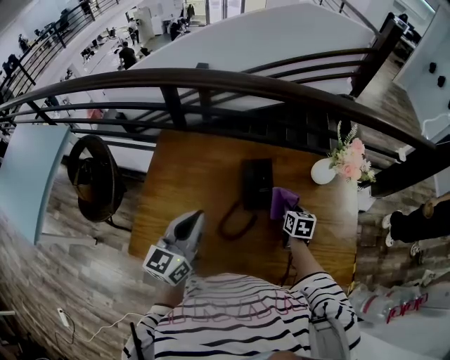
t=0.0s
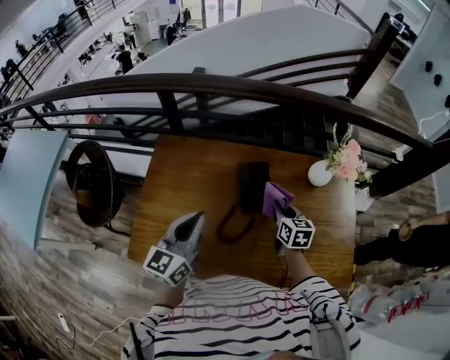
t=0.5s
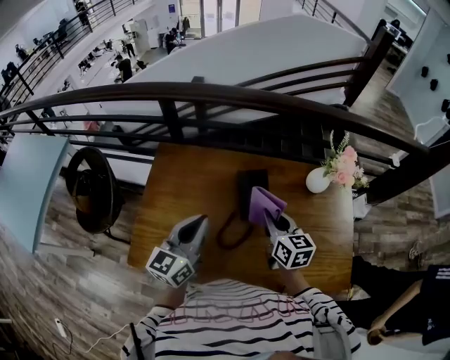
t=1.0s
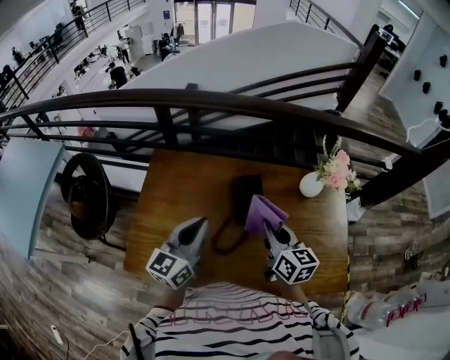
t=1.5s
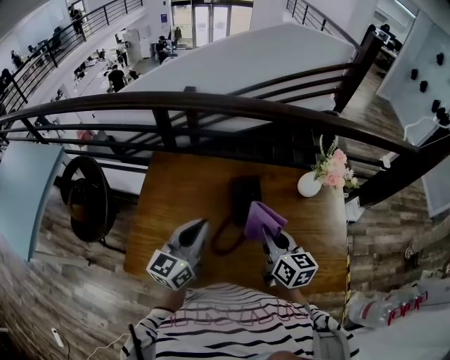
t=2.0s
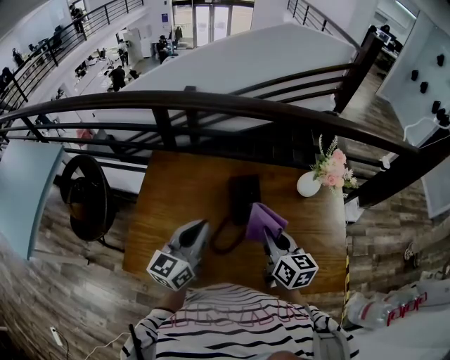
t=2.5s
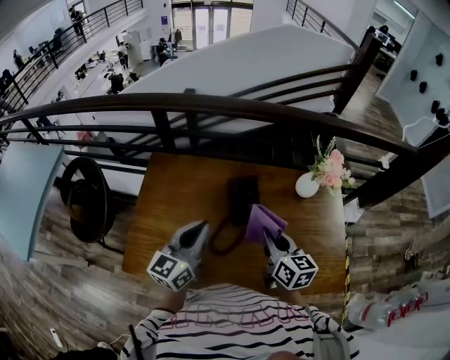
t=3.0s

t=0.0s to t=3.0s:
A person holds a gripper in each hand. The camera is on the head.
t=0.0s to t=1.5s: The right gripper heads upward and to the left, covering approximately 20 cm, and swivels about 30 degrees.
t=1.5s to t=3.0s: The grippers stay close to where they were, moving slightly.

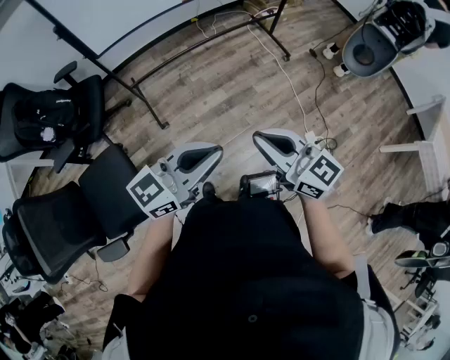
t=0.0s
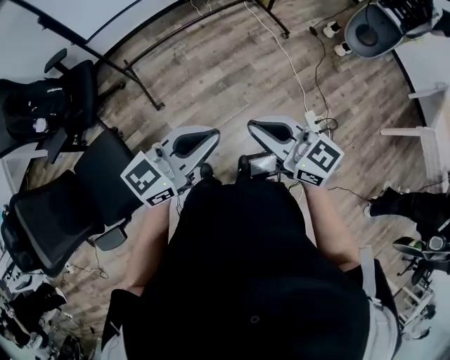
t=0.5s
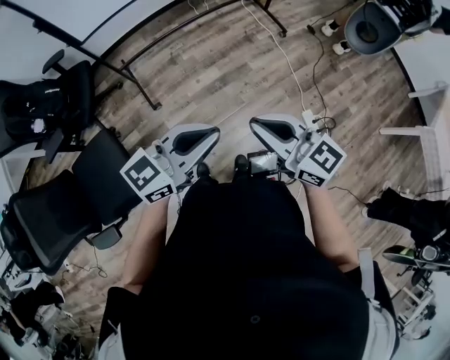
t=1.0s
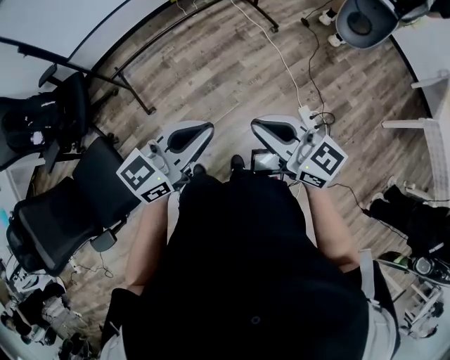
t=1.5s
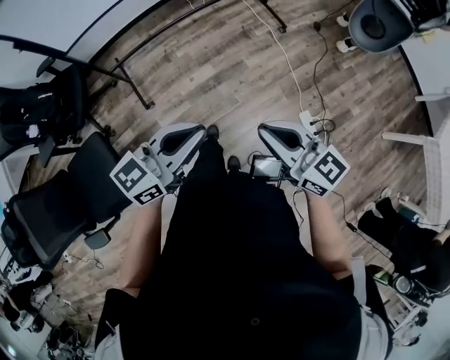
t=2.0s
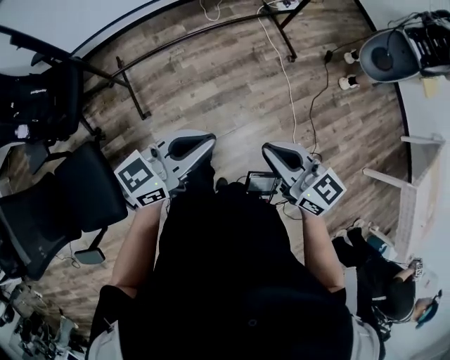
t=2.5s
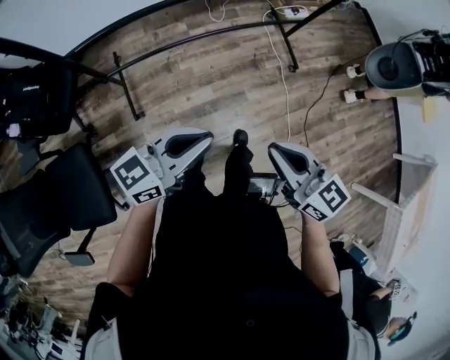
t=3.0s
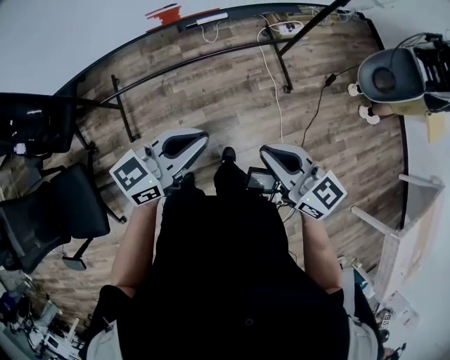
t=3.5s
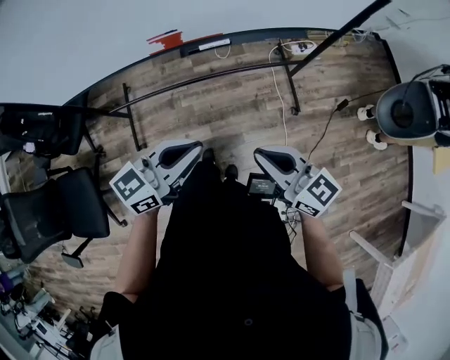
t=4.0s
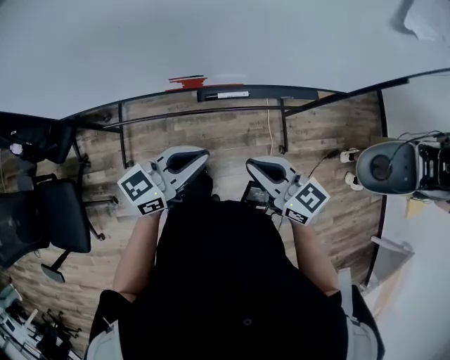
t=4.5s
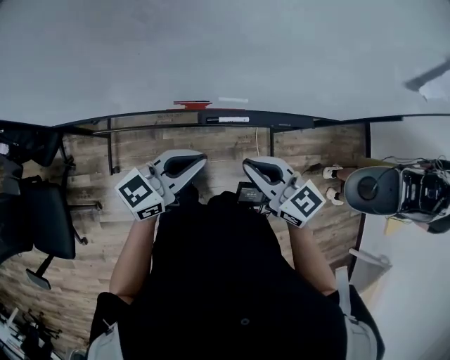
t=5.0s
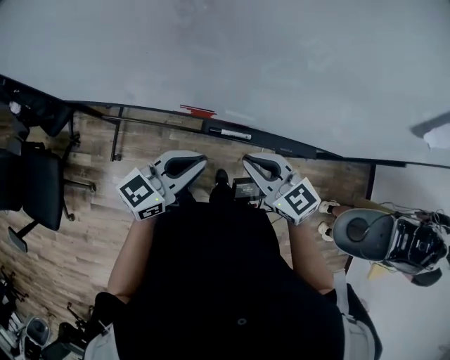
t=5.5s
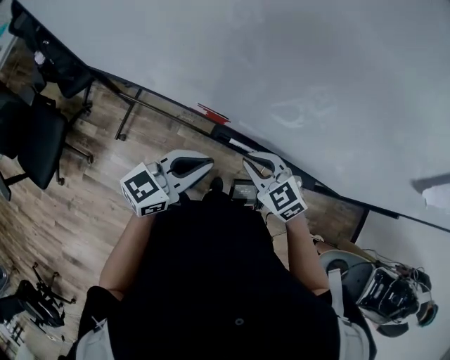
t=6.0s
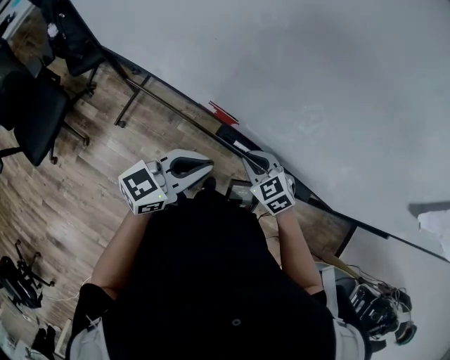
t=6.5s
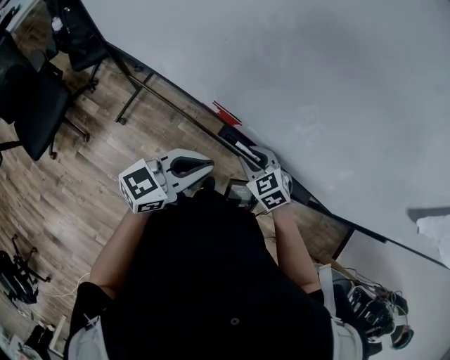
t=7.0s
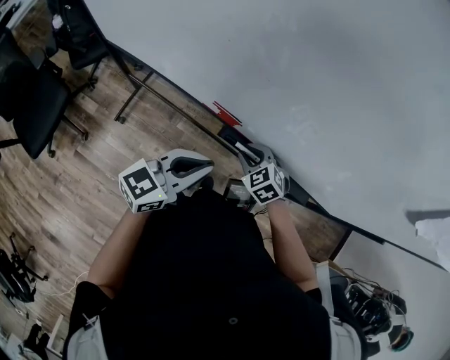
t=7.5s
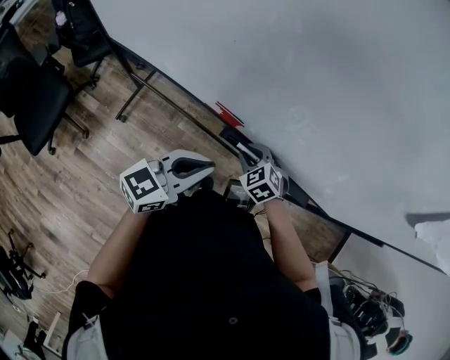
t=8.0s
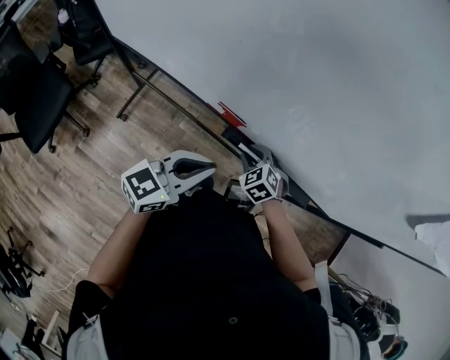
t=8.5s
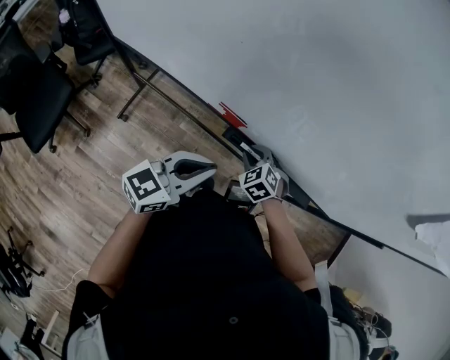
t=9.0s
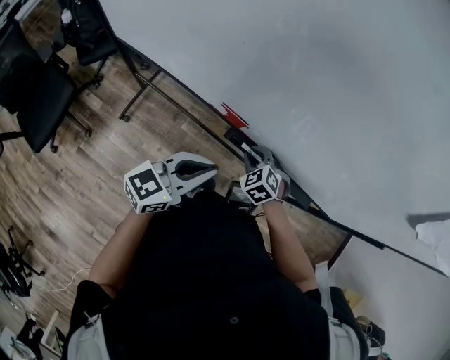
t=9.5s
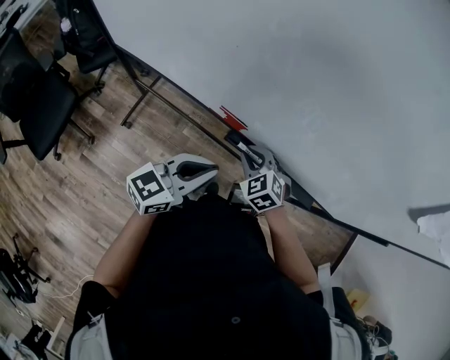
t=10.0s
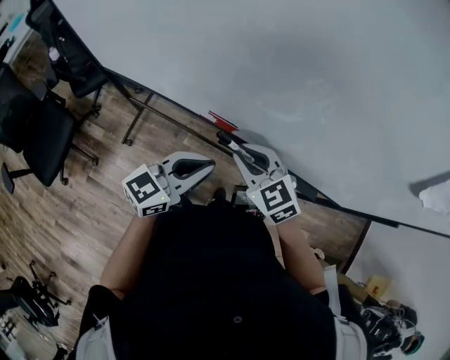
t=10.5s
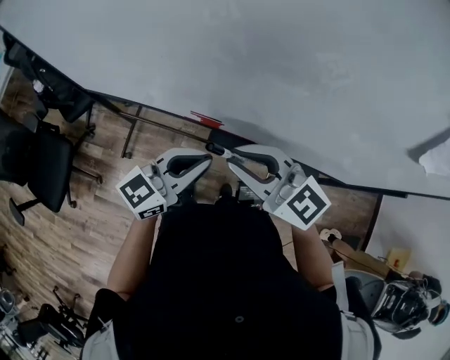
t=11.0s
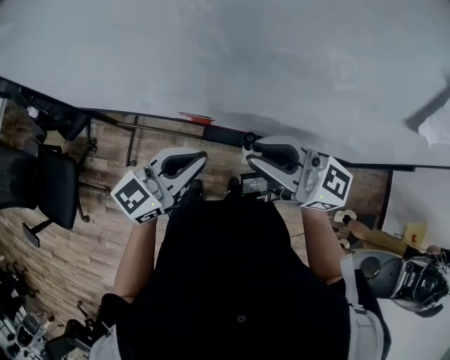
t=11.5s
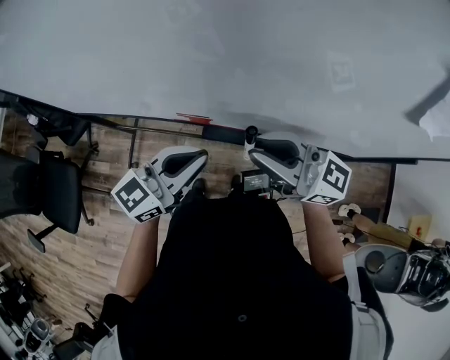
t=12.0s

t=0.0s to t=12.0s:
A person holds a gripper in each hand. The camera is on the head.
t=0.0s to t=2.0s: The left gripper travels to the right, forward and downward by approximately 15 cm. The right gripper shifts some 15 cm to the right and forward.
t=2.0s to t=4.0s: The pair of grippers is taken forward, some 50 cm.
t=4.0s to t=6.0s: The left gripper moves roughly 25 cm, and turns by approximately 30 degrees. Meanwhile the right gripper moves approximately 35 cm, and points its fingers about 30 degrees further downward.
t=6.0s to t=8.0s: The right gripper shifts roughly 10 cm downward, and changes its angle by roughly 20 degrees.
t=8.0s to t=10.0s: There are only small adjustments of the grippers.
t=10.0s to t=12.0s: The right gripper moves upward, approximately 25 cm, and angles its fingers upward, by some 60 degrees. Meanwhile the left gripper is displaced upward by some 10 cm.

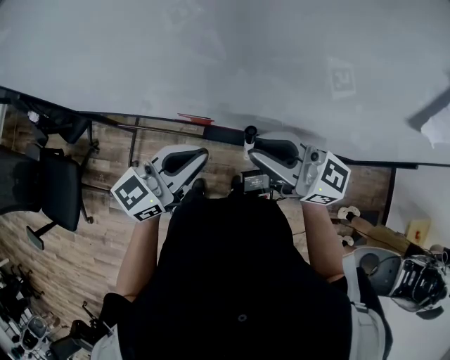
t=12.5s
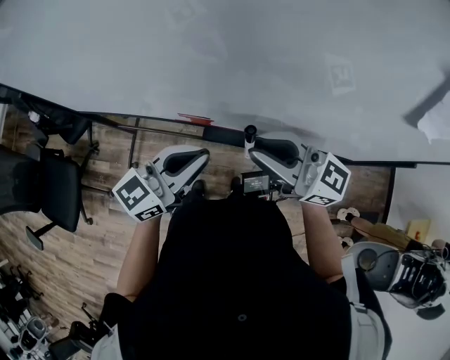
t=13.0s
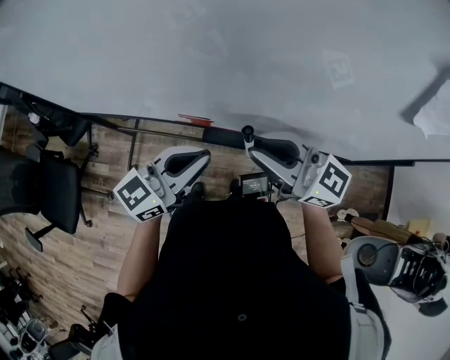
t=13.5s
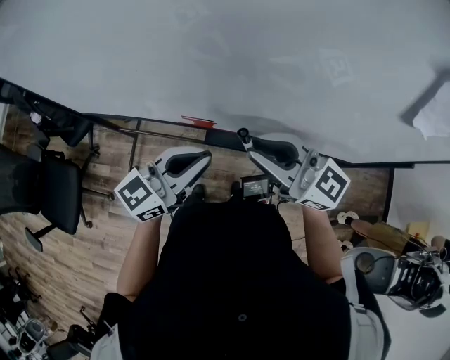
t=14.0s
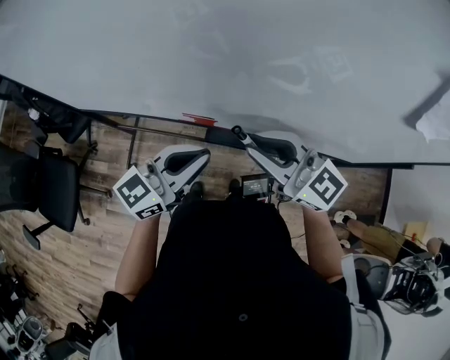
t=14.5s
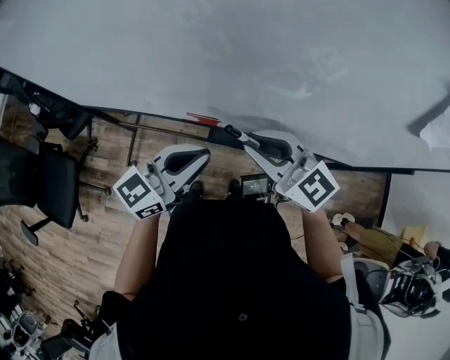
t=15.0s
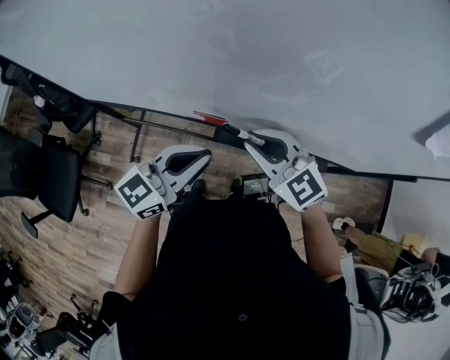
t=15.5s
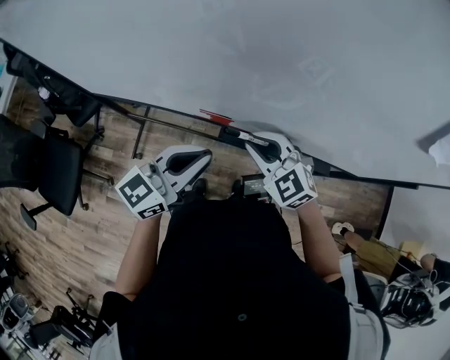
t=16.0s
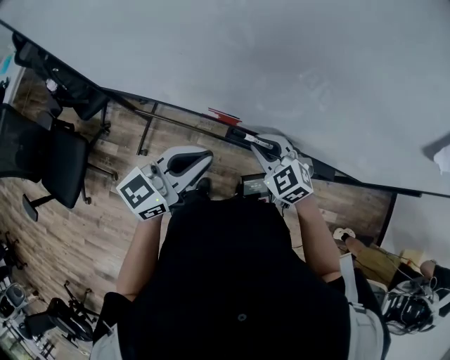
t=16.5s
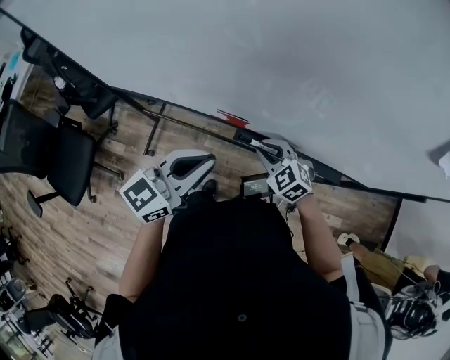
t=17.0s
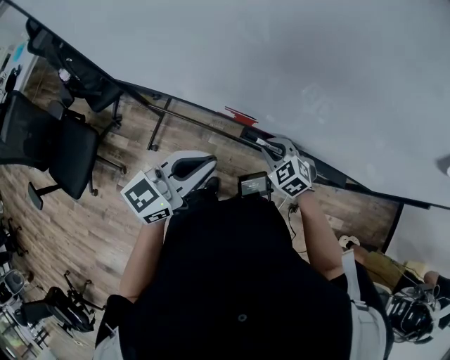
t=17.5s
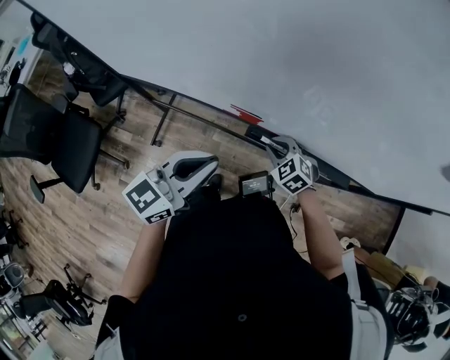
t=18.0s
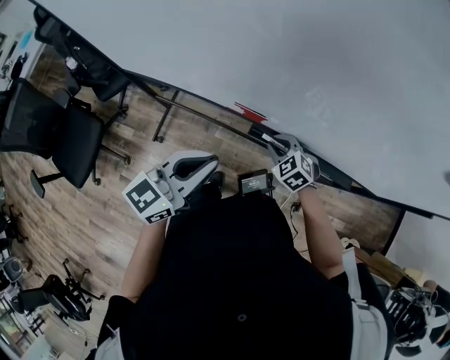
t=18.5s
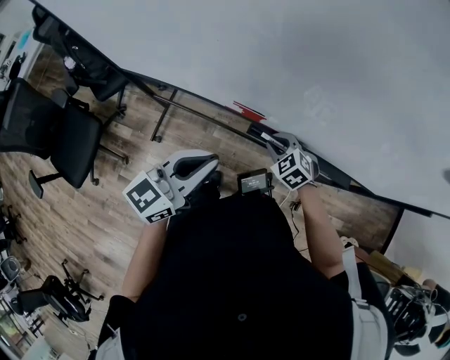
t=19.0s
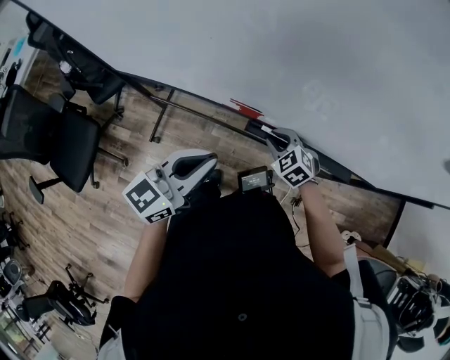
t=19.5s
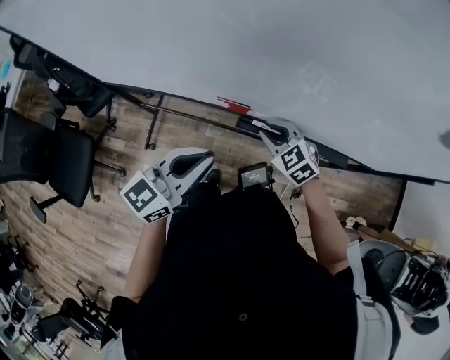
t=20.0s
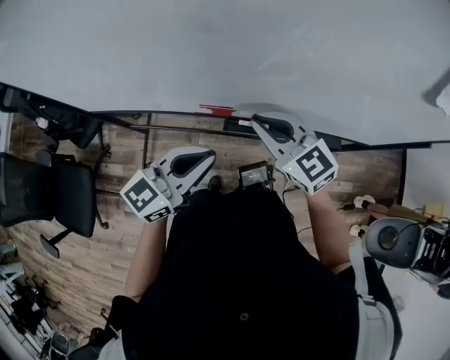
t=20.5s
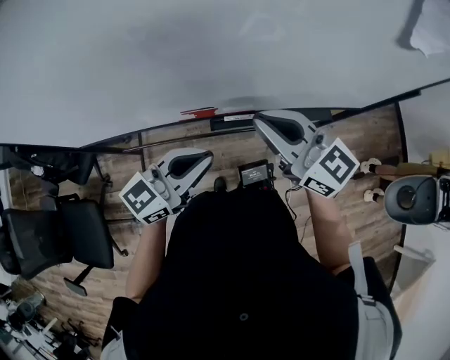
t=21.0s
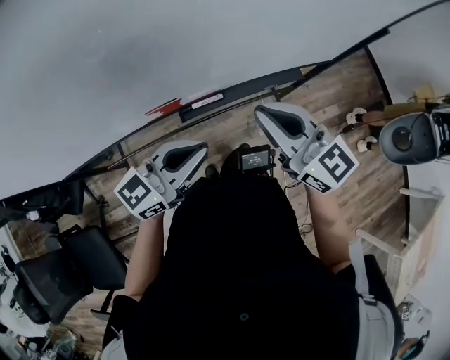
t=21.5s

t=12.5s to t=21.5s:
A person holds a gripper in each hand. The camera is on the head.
t=12.5s to t=14.5s: The right gripper turns by about 20 degrees.
t=14.5s to t=17.0s: The right gripper goes roughly 20 cm downward, and angles its fingers downward, by approximately 40 degrees. Meanwhile the left gripper goes roughly 5 cm to the left.
t=17.0s to t=19.5s: The right gripper heads downward, covering about 5 cm.
t=19.5s to t=21.5s: The right gripper moves upward, about 25 cm, and points its fingers roughly 50 degrees further upward. The left gripper shifts by roughly 10 cm, and swivels about 40 degrees.

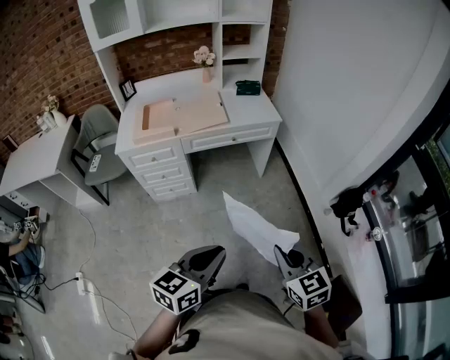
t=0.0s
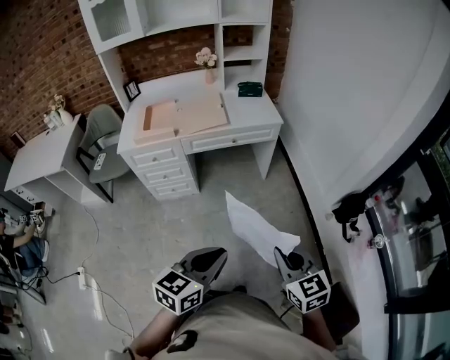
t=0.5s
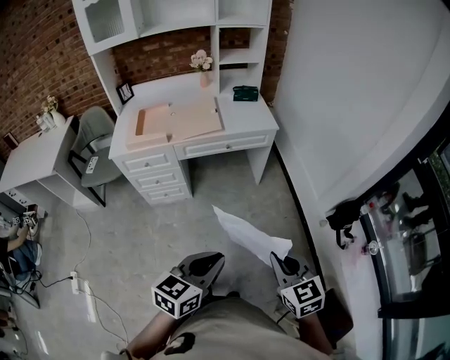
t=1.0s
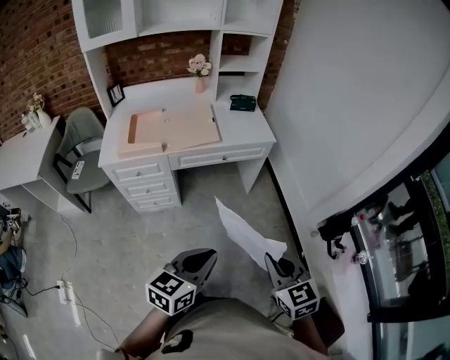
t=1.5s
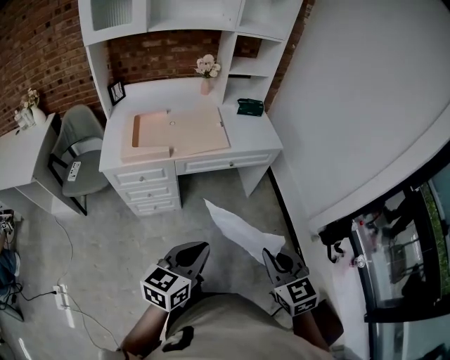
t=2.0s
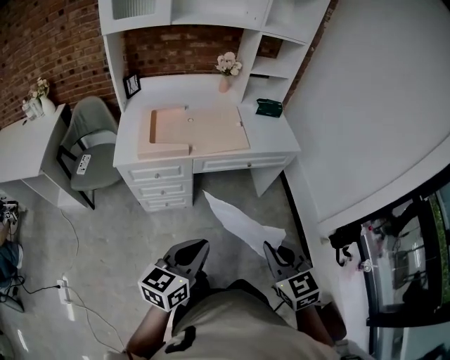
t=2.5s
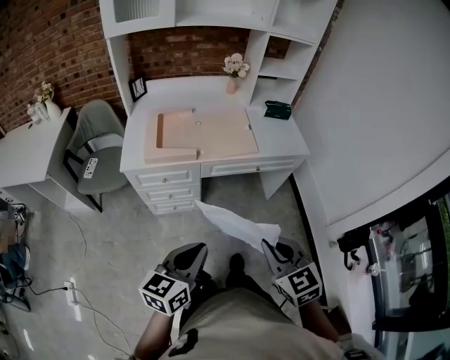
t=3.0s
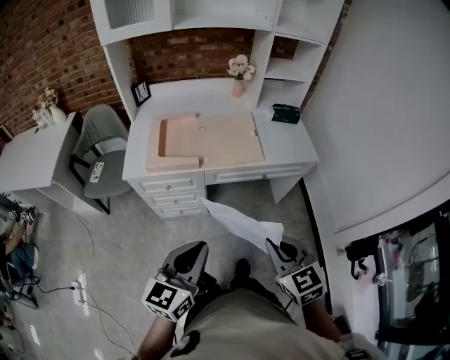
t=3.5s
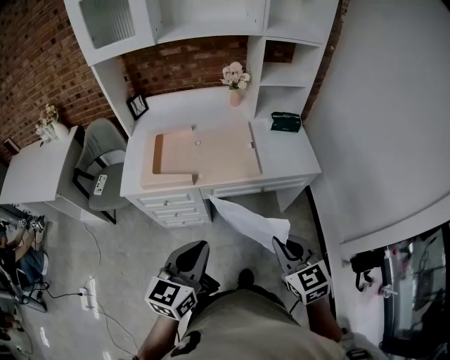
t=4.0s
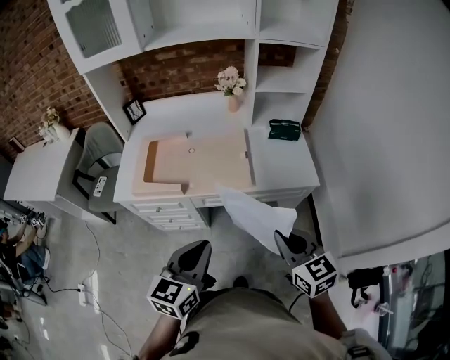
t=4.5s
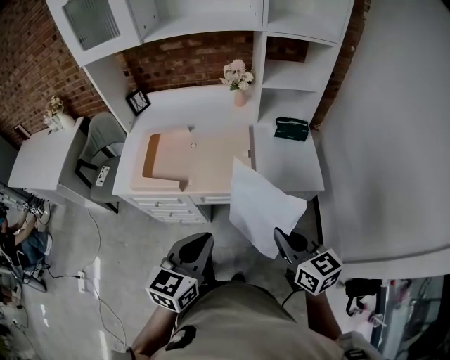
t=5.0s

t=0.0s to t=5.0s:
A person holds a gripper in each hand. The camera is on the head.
t=0.0s to t=2.5s: The grippers both shift to the left and forward by roughly 25 cm.
t=2.5s to t=5.0s: The grippers both shift forward and to the right by about 30 cm. The left gripper swivels about 20 degrees. The right gripper changes its angle by approximately 30 degrees.
